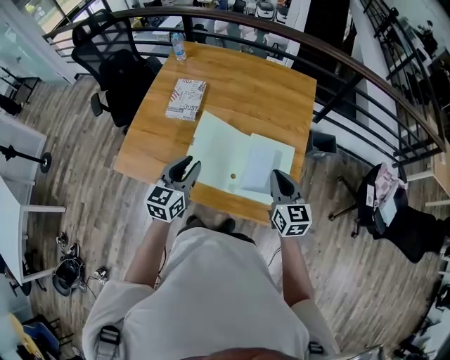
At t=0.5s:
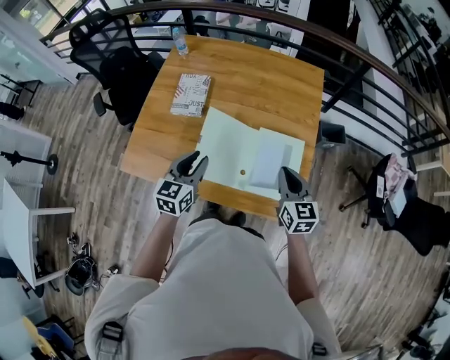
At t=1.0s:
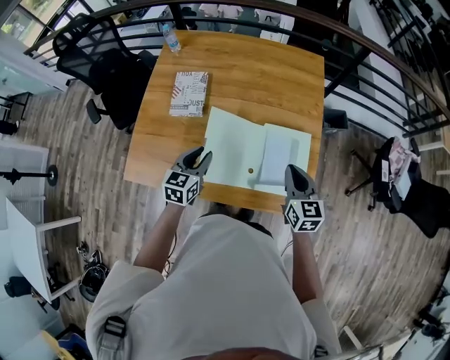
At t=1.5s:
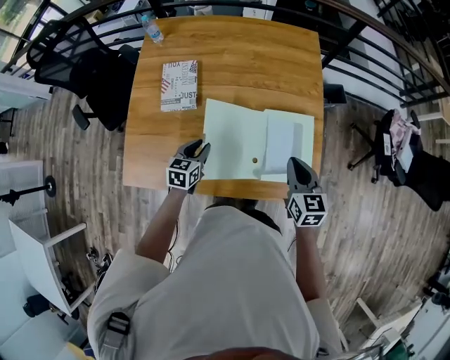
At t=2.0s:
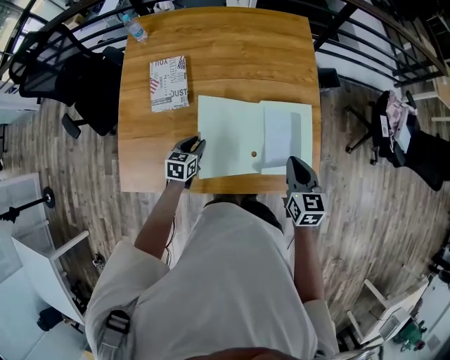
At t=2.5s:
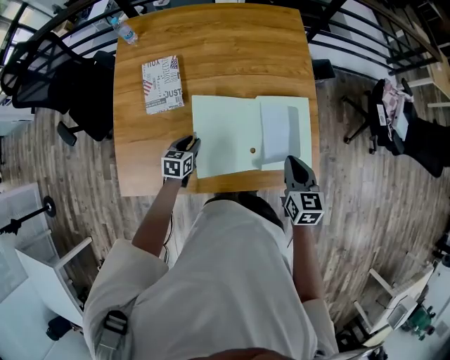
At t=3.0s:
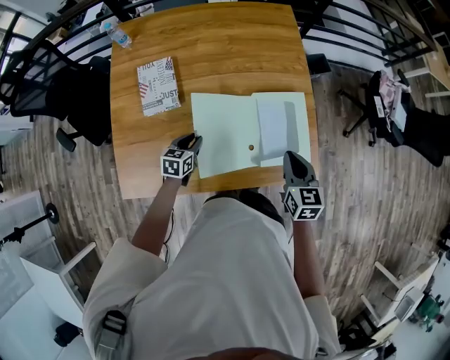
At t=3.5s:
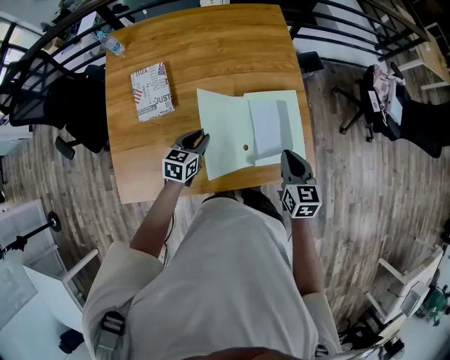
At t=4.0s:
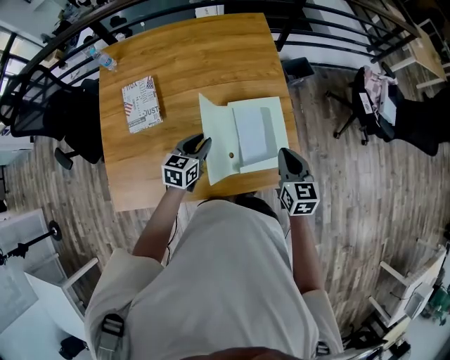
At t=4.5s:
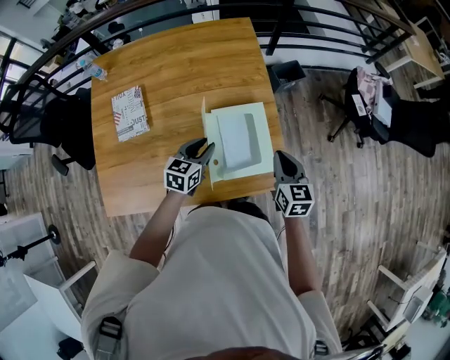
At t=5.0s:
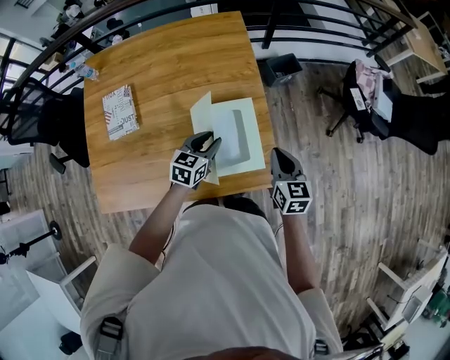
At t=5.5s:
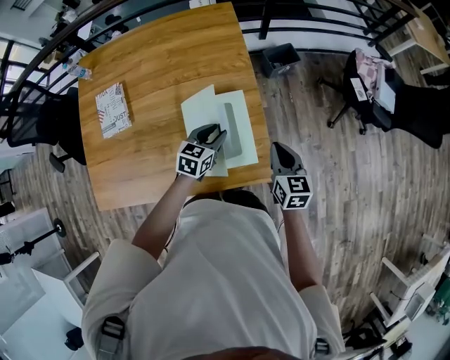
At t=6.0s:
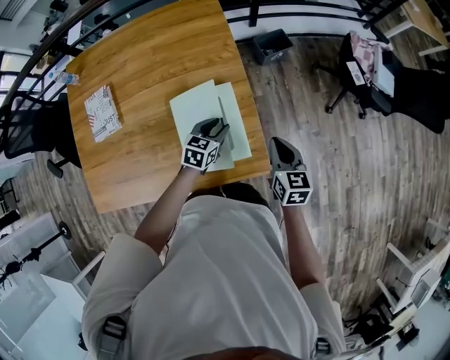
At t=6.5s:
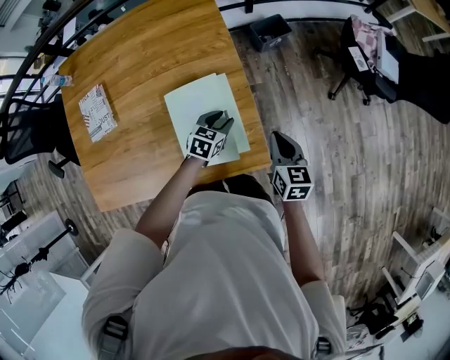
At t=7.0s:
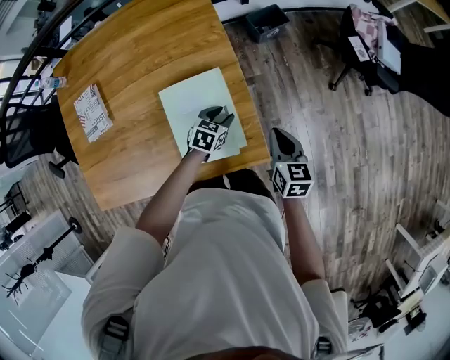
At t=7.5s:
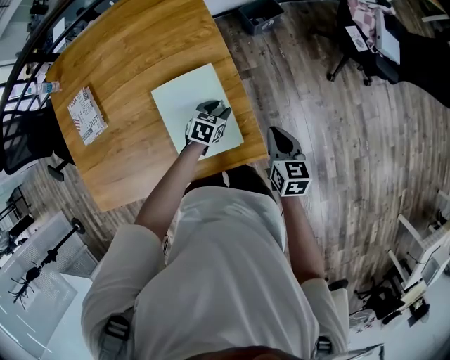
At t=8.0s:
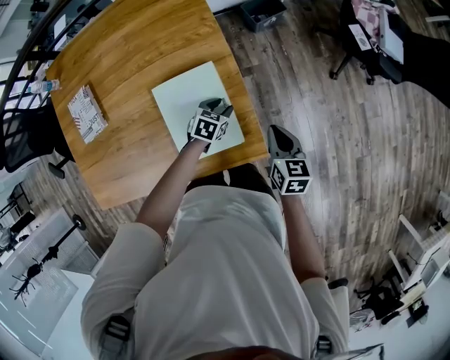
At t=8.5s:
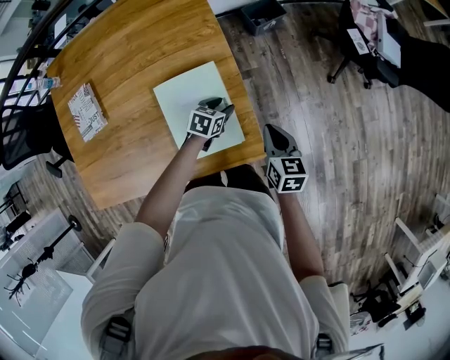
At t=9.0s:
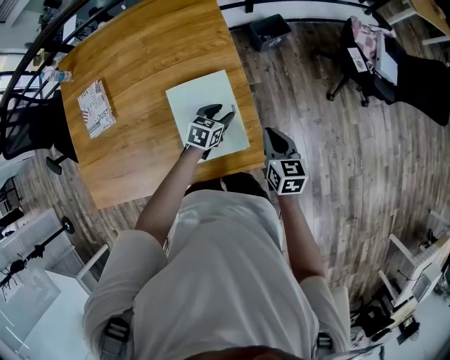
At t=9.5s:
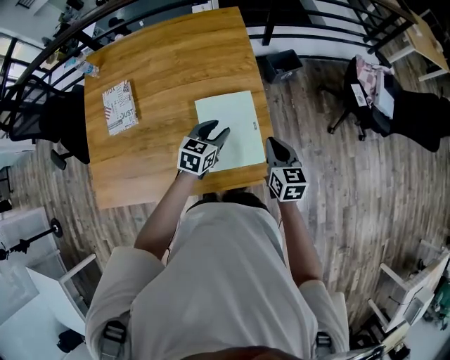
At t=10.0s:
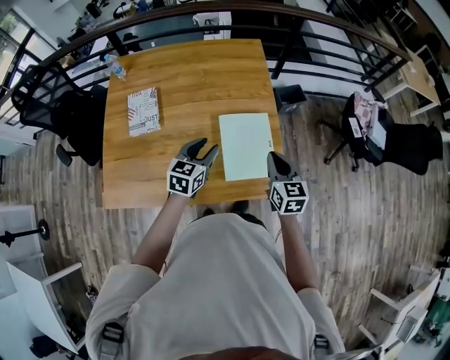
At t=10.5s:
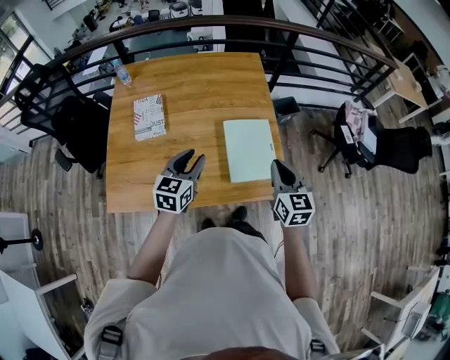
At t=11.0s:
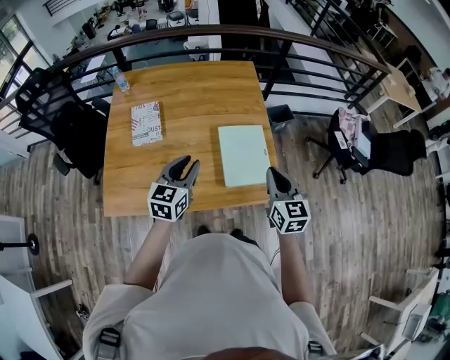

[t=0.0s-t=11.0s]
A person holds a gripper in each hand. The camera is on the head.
t=0.0s to t=2.0s: The left gripper heads downward and forward, covering some 30 cm, and changes its angle by approximately 30 degrees. Meanwhile the right gripper shifts about 10 cm downward, and swivels approximately 20 degrees.
t=2.0s to t=3.5s: The left gripper goes approximately 10 cm to the right and upward.
t=3.5s to t=5.5s: The right gripper shifts roughly 20 cm to the right and forward. Meanwhile the left gripper travels to the right by roughly 30 cm.
t=5.5s to t=7.5s: The right gripper travels downward and to the right by approximately 10 cm, while the left gripper is displaced downward and to the right by some 20 cm, and turns by approximately 20 degrees.
t=7.5s to t=9.0s: The right gripper changes place by some 5 cm. The left gripper is displaced upward by roughly 5 cm.
t=9.0s to t=11.0s: Both grippers travel together upward, to the left and backward, approximately 40 cm. The right gripper changes its angle by some 20 degrees. The left gripper turns by roughly 40 degrees.

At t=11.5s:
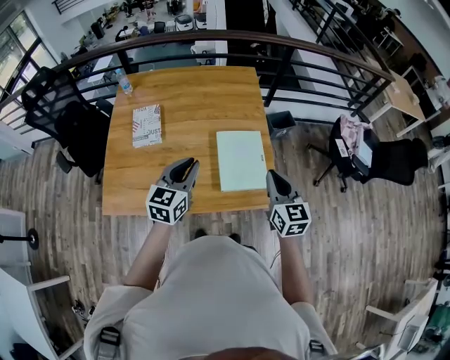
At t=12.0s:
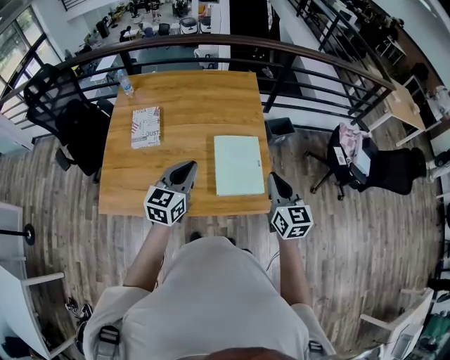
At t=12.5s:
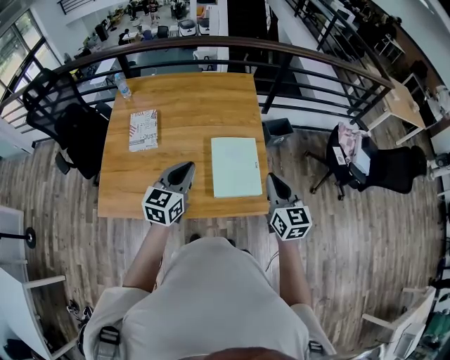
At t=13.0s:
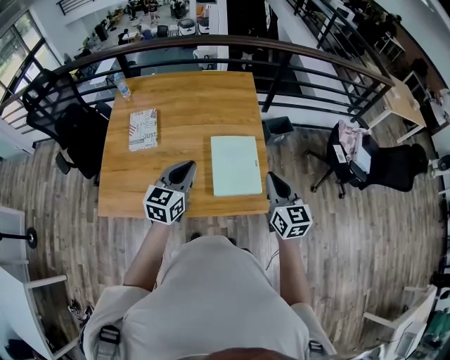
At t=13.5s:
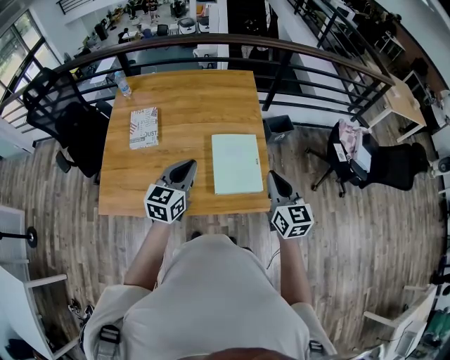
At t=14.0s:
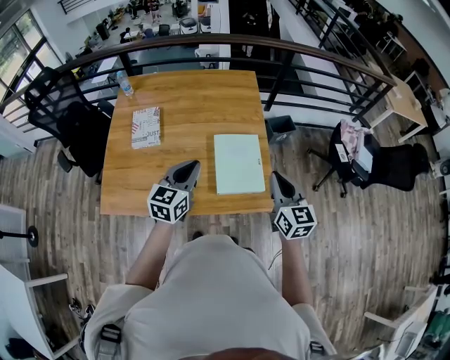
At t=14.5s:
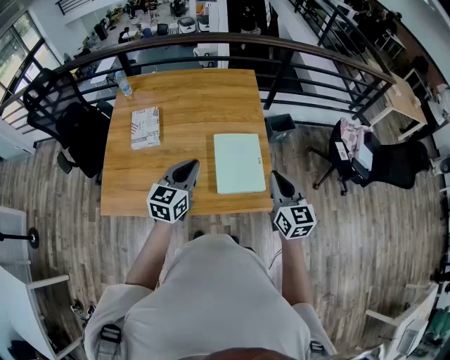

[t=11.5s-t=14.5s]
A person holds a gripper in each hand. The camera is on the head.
t=11.5s to t=13.0s: The grippers make only small movements.
t=13.0s to t=14.5s: Both grippers stay about where they are.

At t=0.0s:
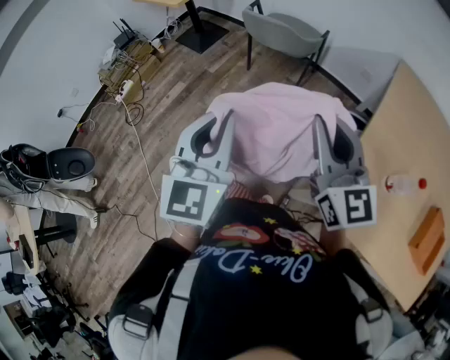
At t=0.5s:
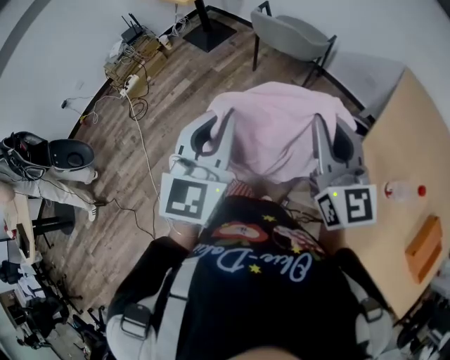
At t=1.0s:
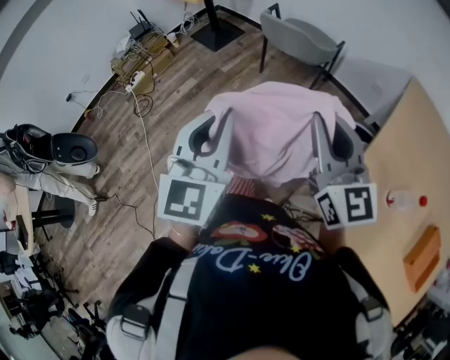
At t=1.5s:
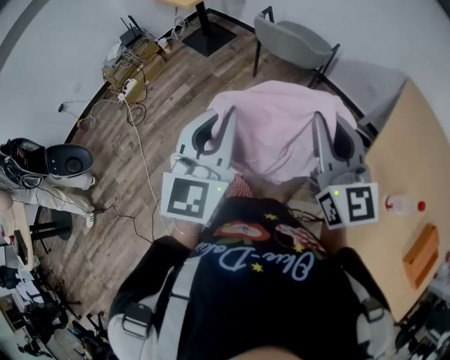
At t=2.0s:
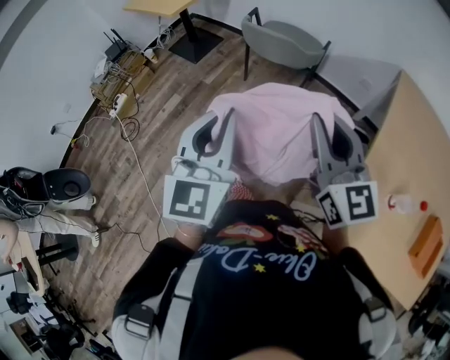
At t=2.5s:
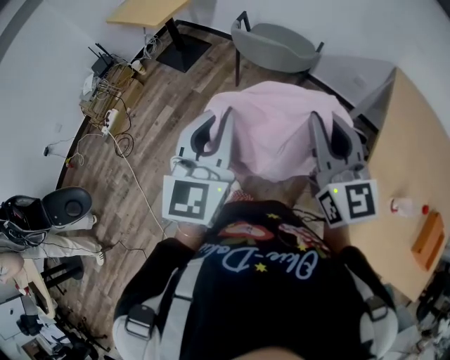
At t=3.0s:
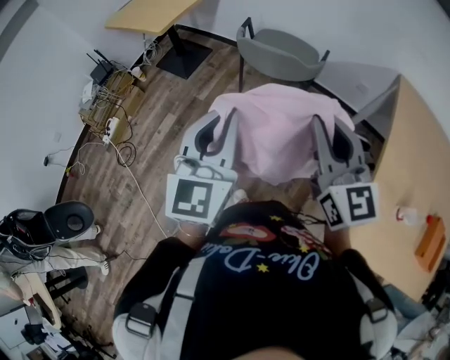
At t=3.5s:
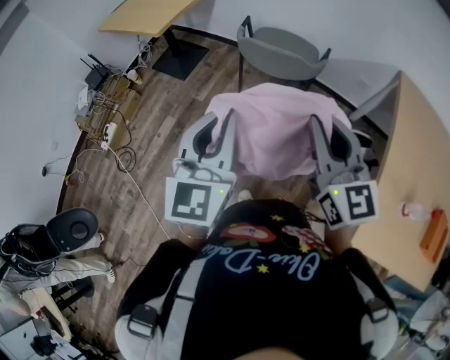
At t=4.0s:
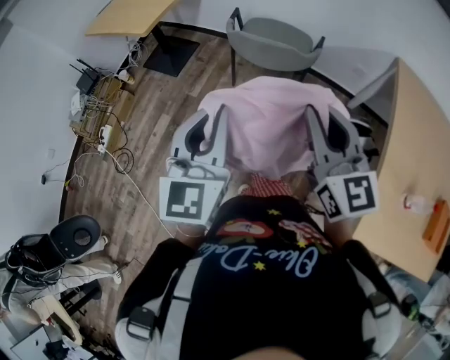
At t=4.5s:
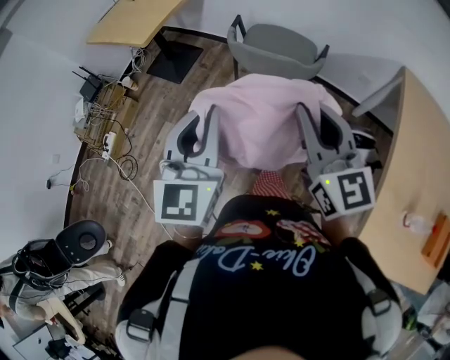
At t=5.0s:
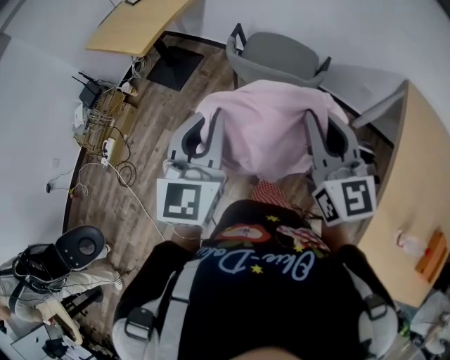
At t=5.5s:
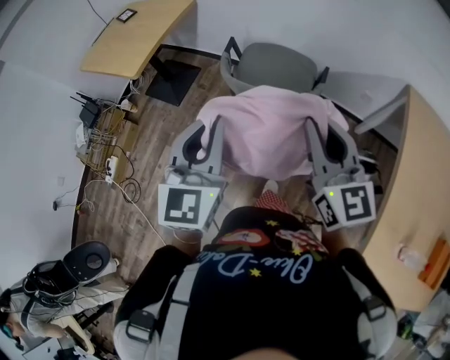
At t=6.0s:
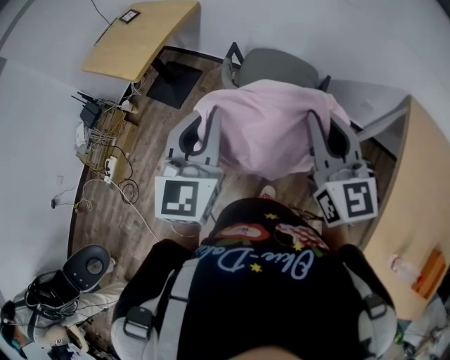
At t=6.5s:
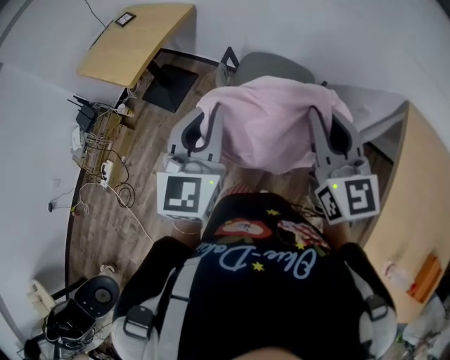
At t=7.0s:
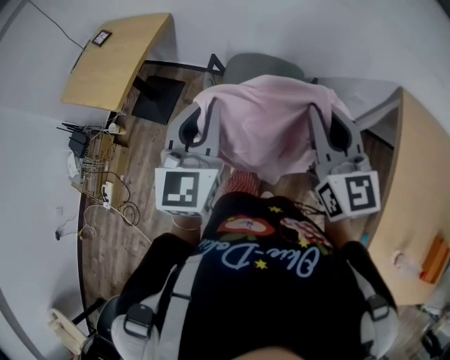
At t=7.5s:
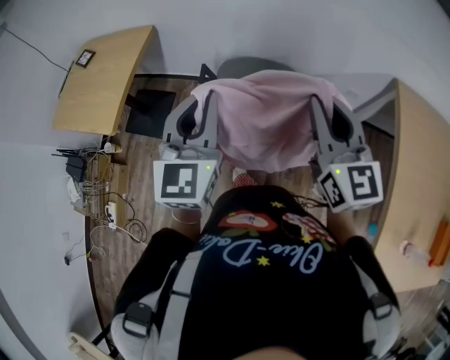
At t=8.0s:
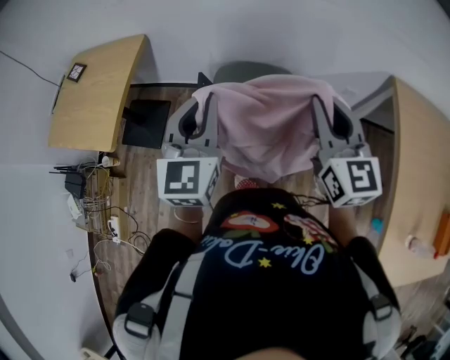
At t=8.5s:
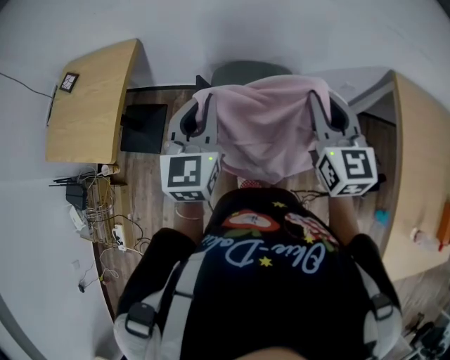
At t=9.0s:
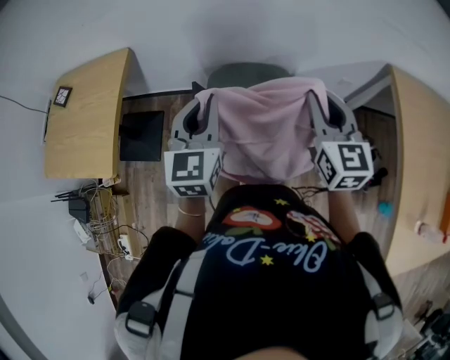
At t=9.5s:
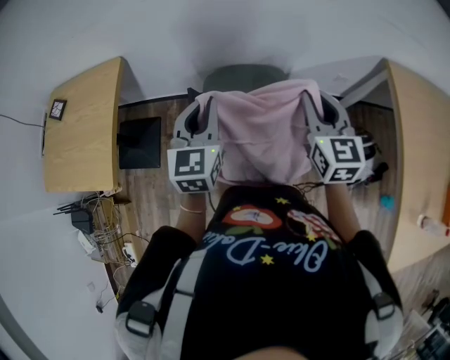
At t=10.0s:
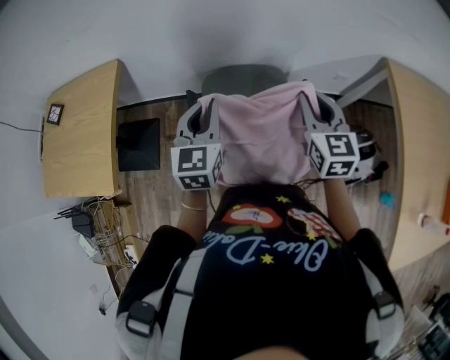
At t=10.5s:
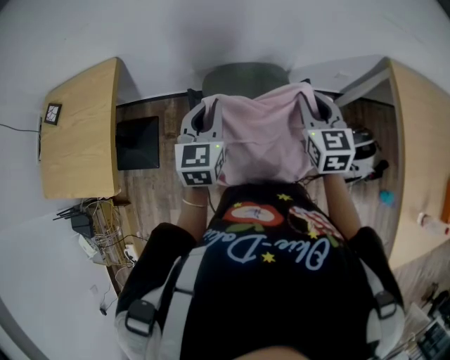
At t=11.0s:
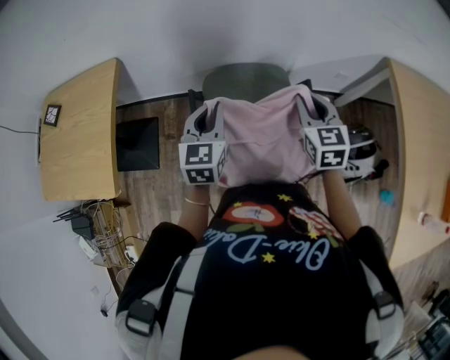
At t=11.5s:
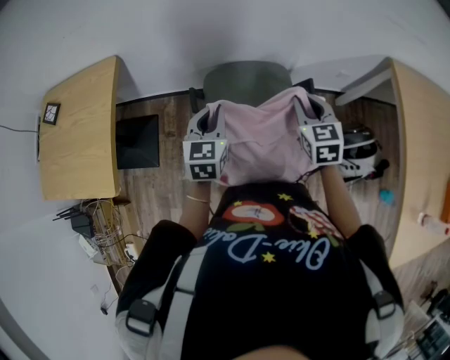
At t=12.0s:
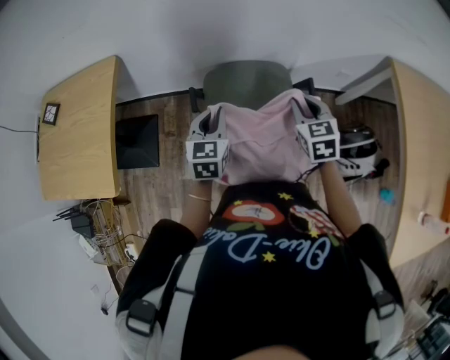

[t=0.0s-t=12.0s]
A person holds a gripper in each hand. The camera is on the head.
t=0.0s to t=2.0s: The grippers both shift forward by some 10 cm.
t=2.0s to t=4.0s: Both grippers travel together forward and to the left, about 15 cm.
t=4.0s to t=6.0s: Both grippers move forward, about 25 cm.
t=6.0s to t=8.0s: Both grippers move forward, approximately 20 cm. The right gripper changes its angle by roughly 20 degrees.
t=8.0s to t=10.0s: The left gripper shifts roughly 15 cm forward and downward. The right gripper moves downward and forward, about 15 cm.
t=10.0s to t=12.0s: Both grippers move downward, about 10 cm.

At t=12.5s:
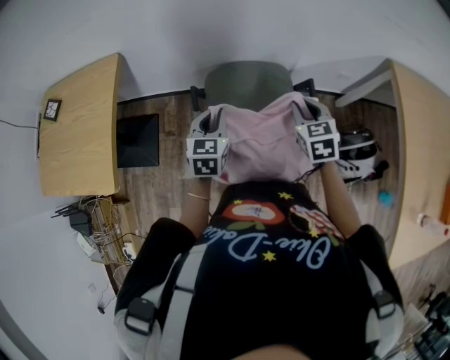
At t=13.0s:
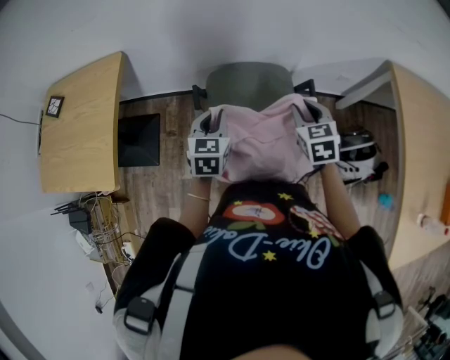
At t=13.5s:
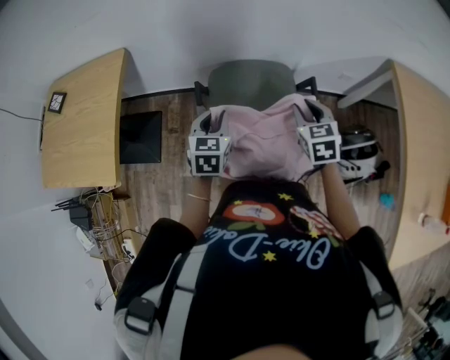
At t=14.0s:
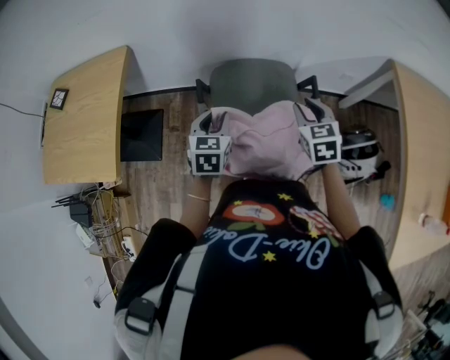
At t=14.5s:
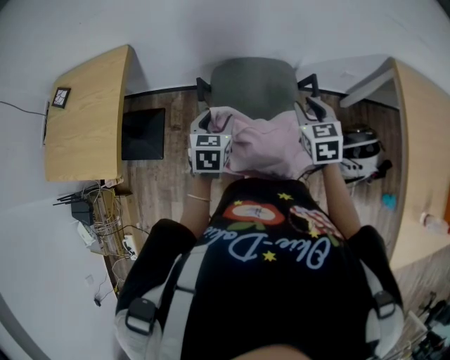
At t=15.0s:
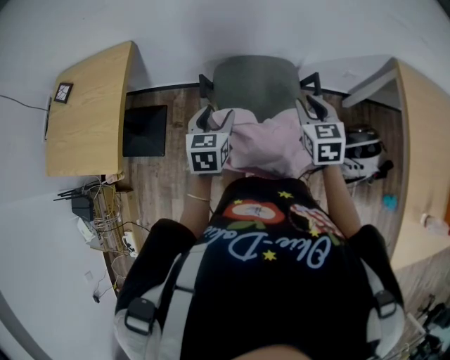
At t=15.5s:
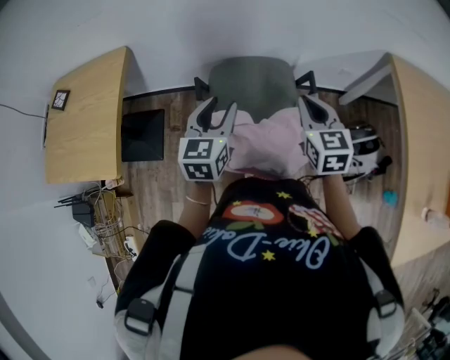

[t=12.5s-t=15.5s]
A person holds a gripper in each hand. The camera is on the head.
t=12.5s to t=14.0s: The grippers move only a little.
t=14.0s to t=15.5s: Both grippers move upward, about 10 cm. The right gripper closes.
